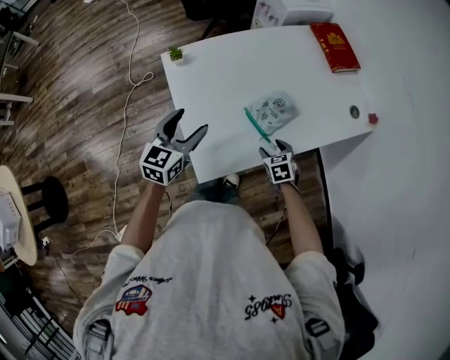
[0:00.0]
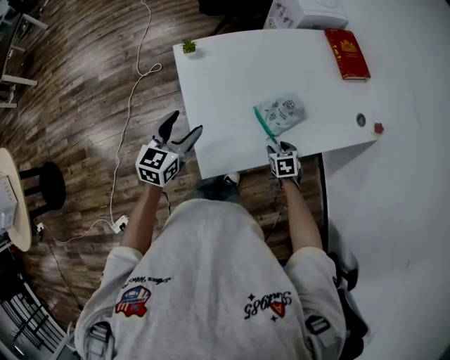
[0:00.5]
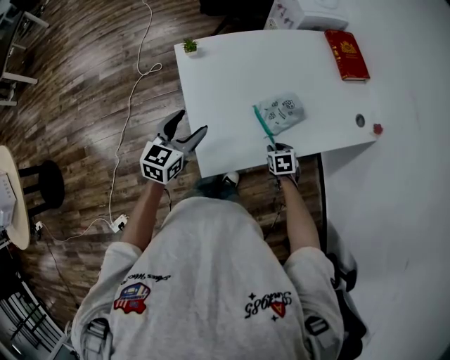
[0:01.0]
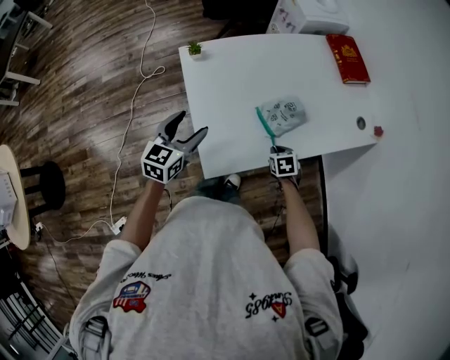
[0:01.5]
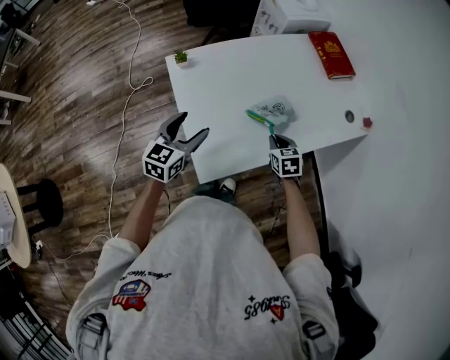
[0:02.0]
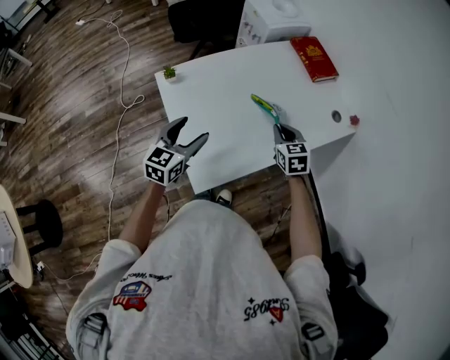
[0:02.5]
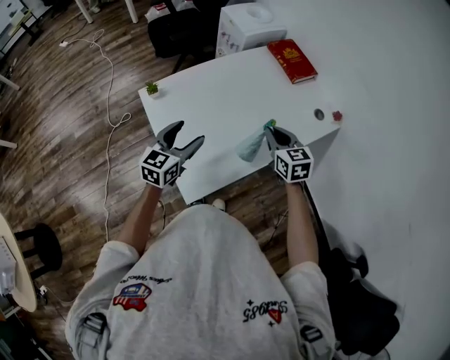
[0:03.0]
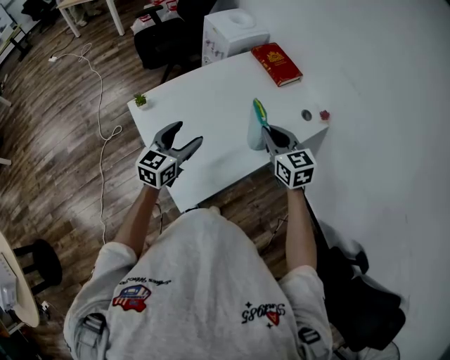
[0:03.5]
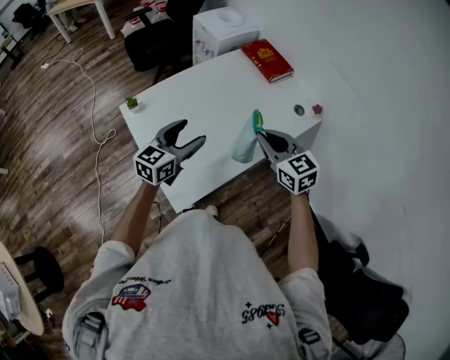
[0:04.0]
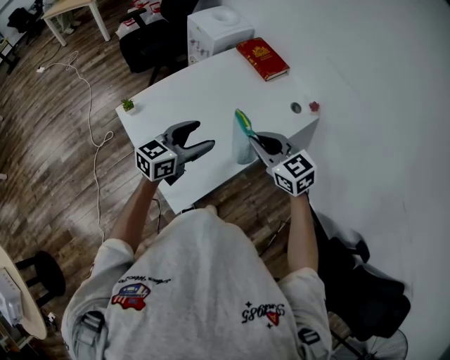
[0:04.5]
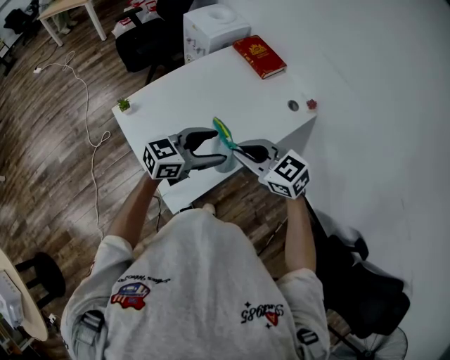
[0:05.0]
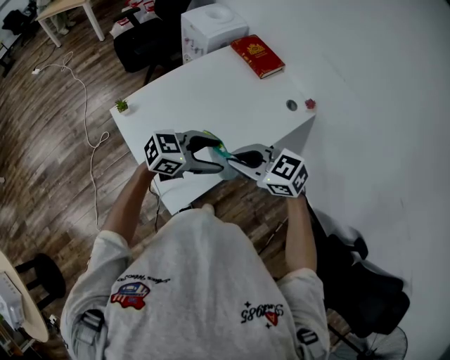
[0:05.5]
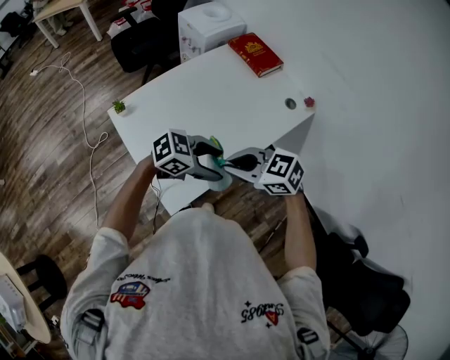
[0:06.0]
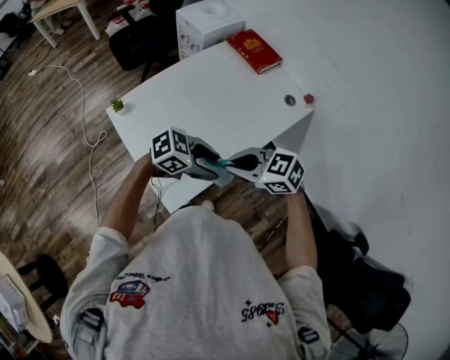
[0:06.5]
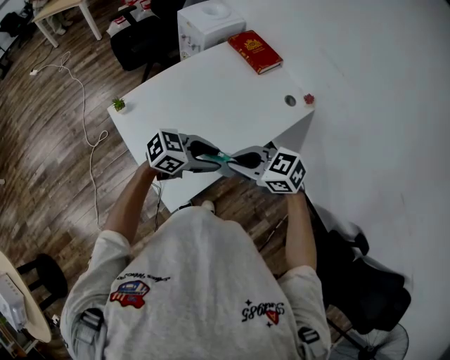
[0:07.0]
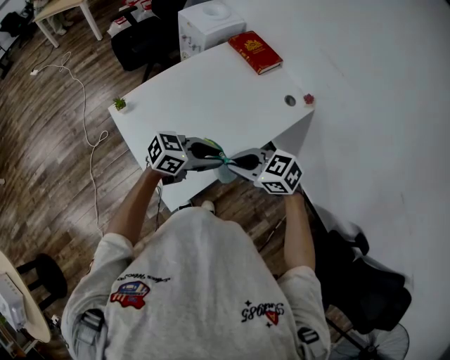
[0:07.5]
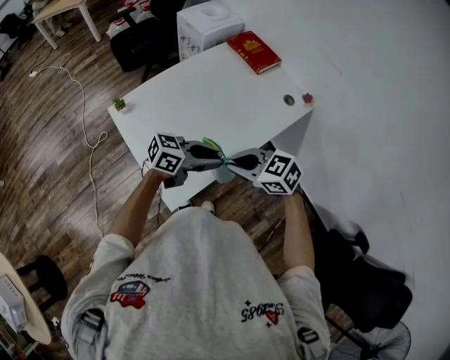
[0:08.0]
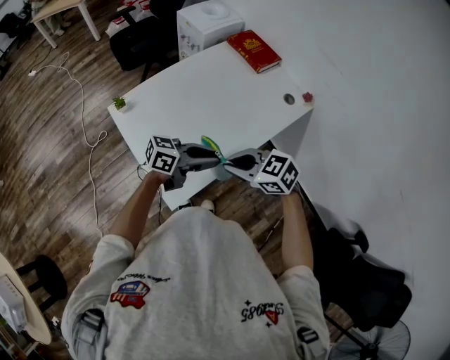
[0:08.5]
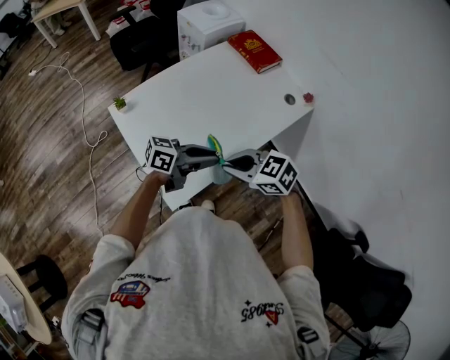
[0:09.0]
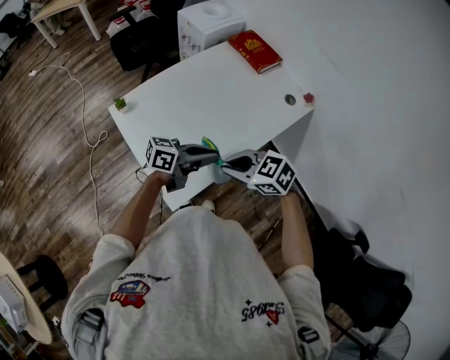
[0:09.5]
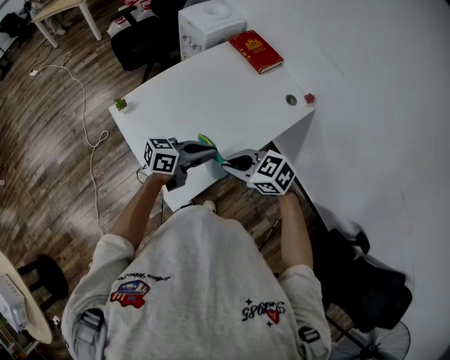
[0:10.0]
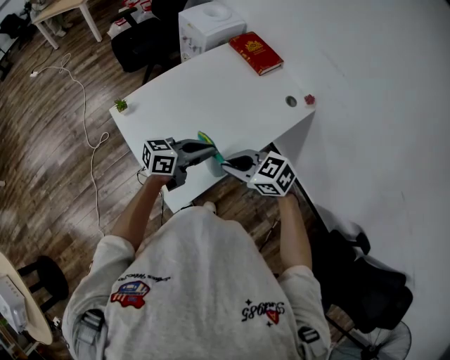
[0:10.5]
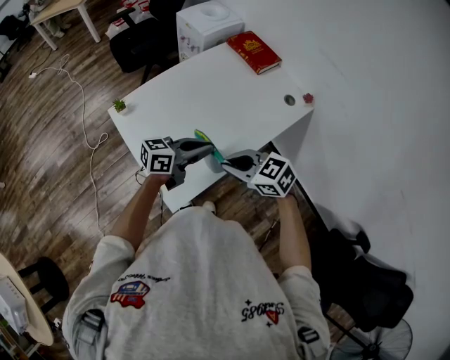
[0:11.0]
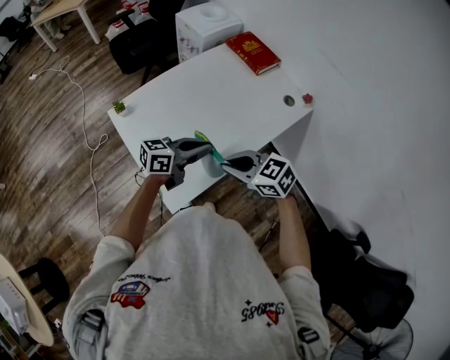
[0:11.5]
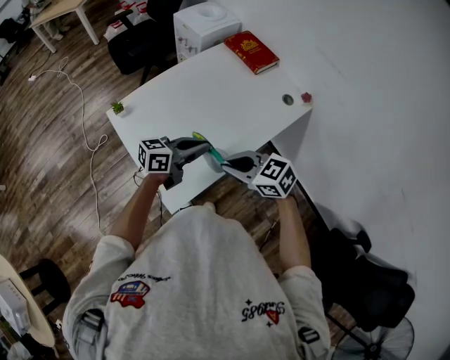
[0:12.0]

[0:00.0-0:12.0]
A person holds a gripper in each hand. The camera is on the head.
0:00.0 to 0:02.0: The right gripper shifts some 5 cm upward, and closes.
0:02.0 to 0:04.0: The left gripper goes approximately 15 cm to the right, upward and forward, and rotates about 20 degrees, while the right gripper travels upward by roughly 25 cm, and changes its angle by roughly 30 degrees.
0:04.0 to 0:06.0: The left gripper moves roughly 15 cm, and changes its angle by roughly 60 degrees. The right gripper shifts by roughly 10 cm, and turns by approximately 40 degrees.
0:06.0 to 0:08.0: The left gripper rotates some 30 degrees, and closes.
0:08.0 to 0:10.0: The grippers move only a little.
0:10.0 to 0:12.0: The grippers make only small movements.

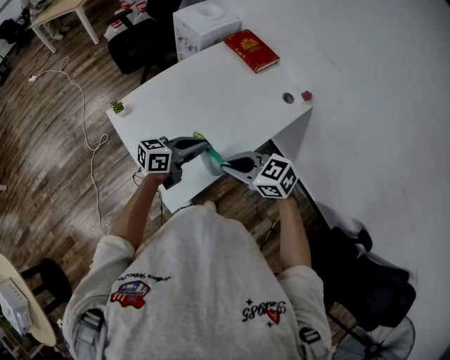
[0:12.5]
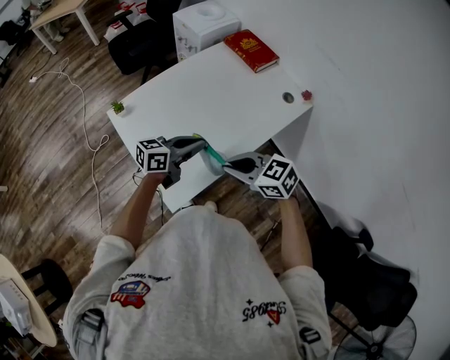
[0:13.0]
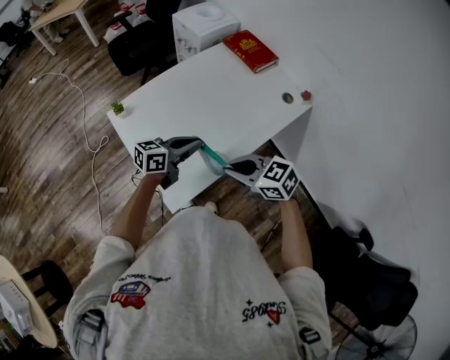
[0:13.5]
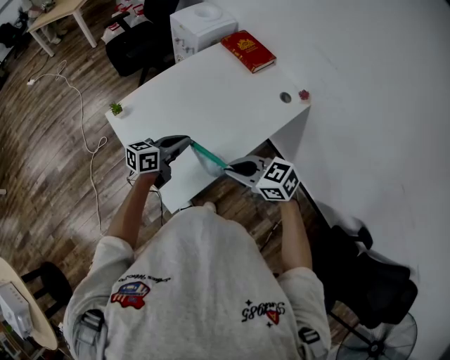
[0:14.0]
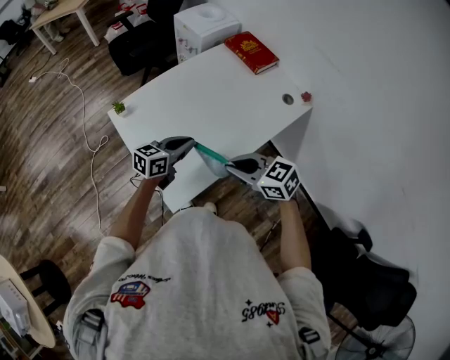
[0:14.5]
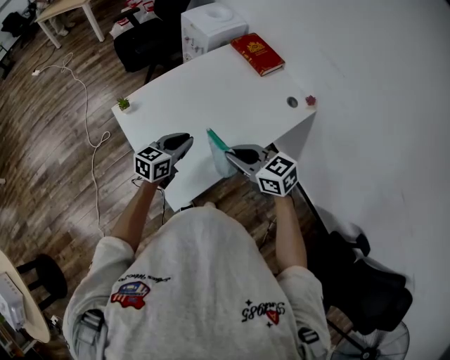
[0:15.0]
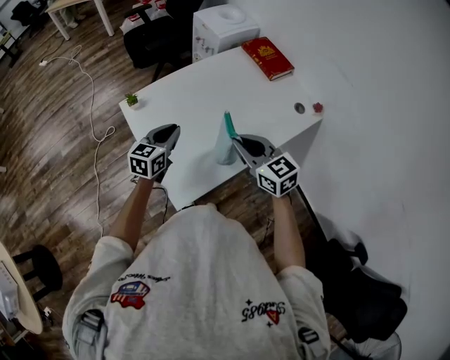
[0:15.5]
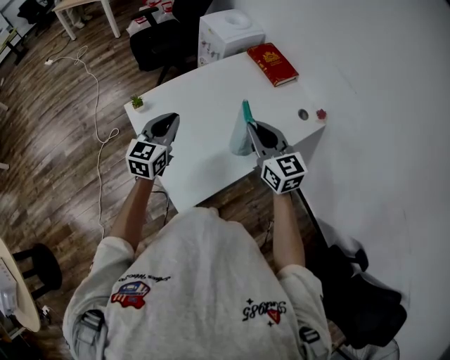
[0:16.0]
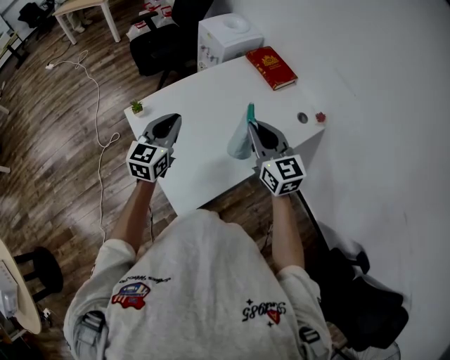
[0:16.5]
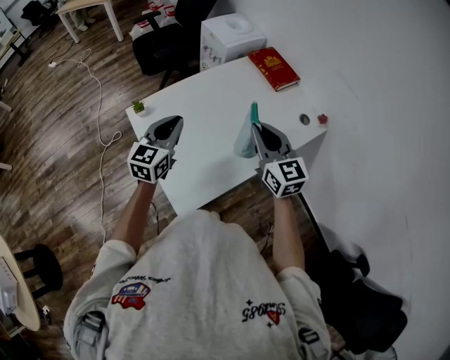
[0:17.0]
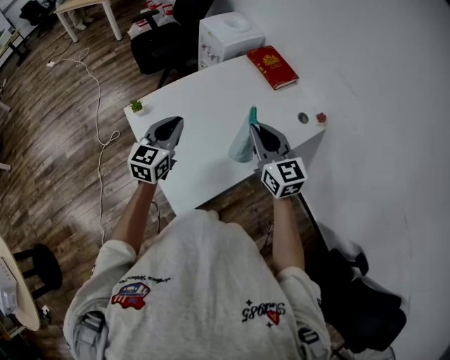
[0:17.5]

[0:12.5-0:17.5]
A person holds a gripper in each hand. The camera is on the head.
0:12.5 to 0:15.0: The left gripper shifts by roughly 10 cm, and rotates approximately 30 degrees.
0:15.0 to 0:17.5: The left gripper heads upward and to the left, covering roughly 10 cm, and turns by about 30 degrees; the right gripper moves forward and upward, approximately 10 cm, and rotates roughly 30 degrees.

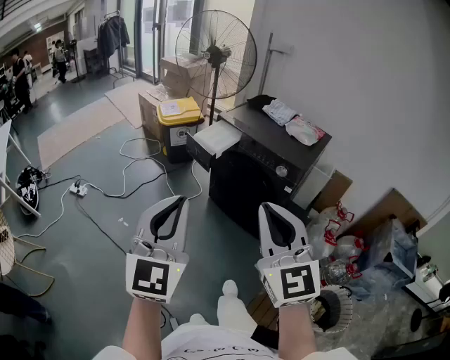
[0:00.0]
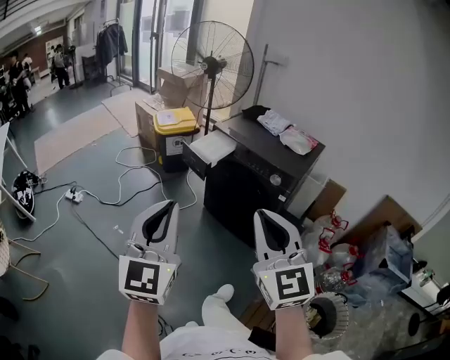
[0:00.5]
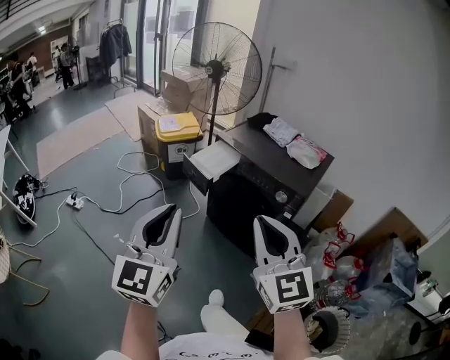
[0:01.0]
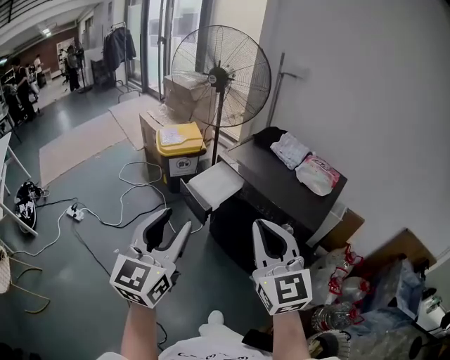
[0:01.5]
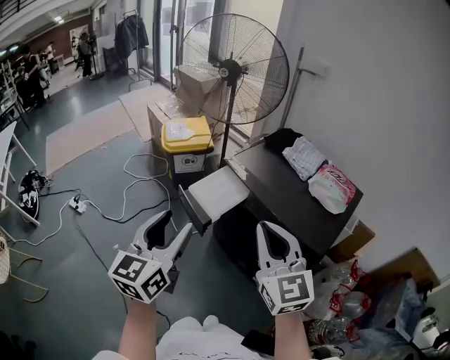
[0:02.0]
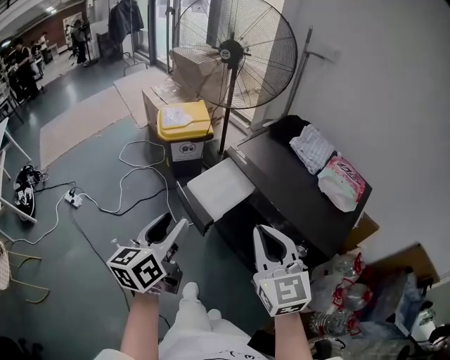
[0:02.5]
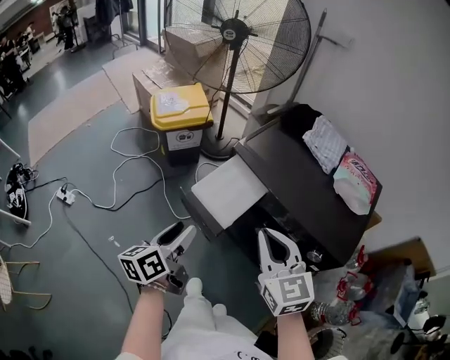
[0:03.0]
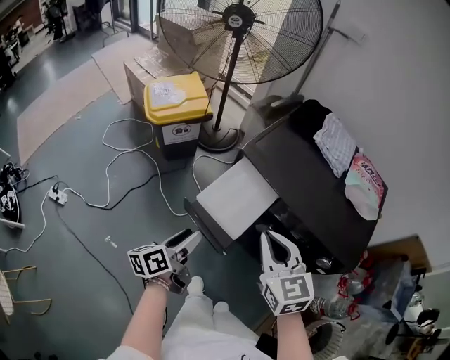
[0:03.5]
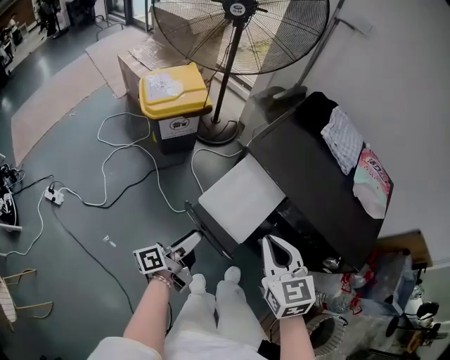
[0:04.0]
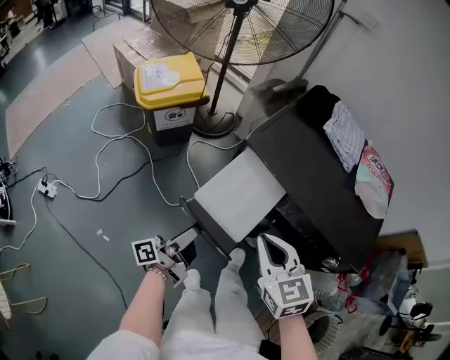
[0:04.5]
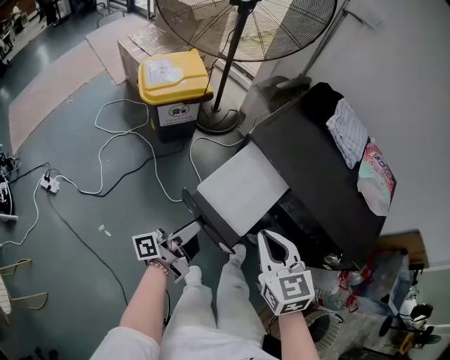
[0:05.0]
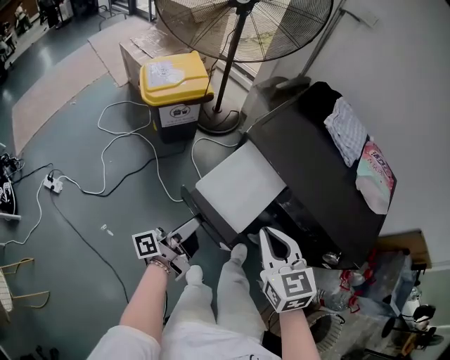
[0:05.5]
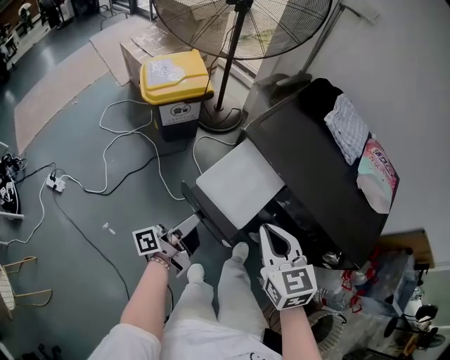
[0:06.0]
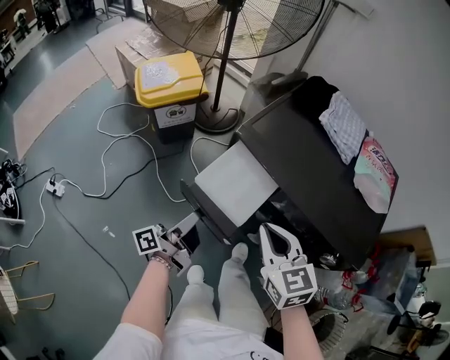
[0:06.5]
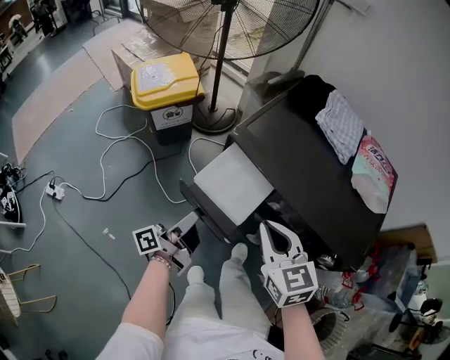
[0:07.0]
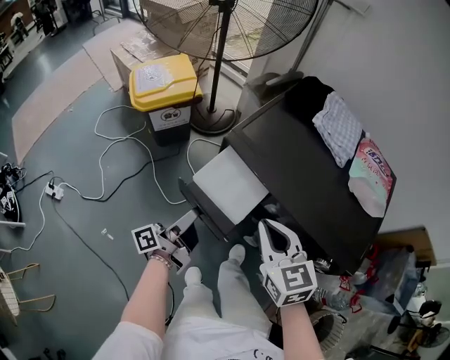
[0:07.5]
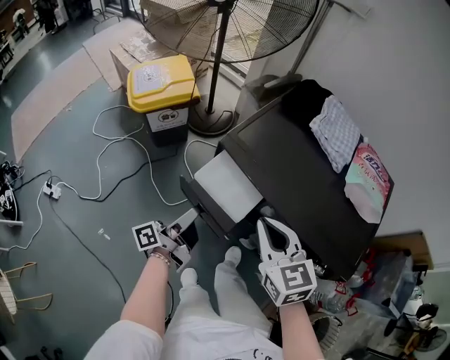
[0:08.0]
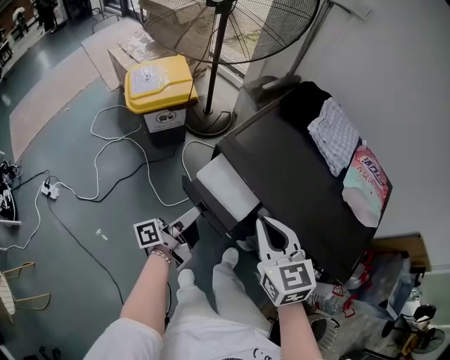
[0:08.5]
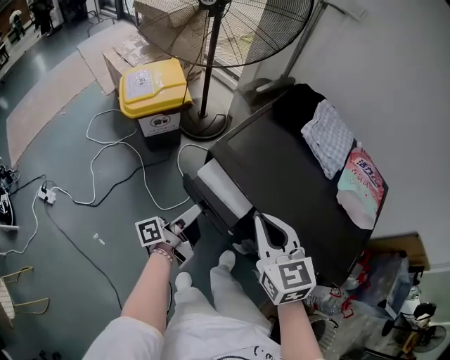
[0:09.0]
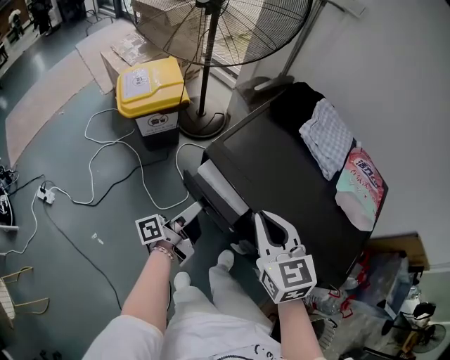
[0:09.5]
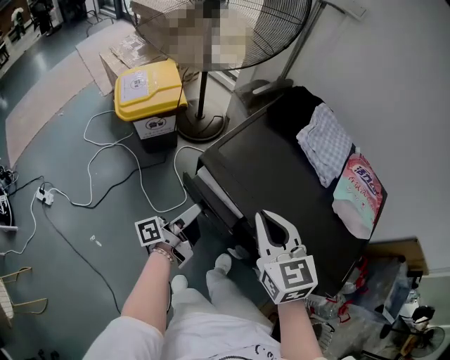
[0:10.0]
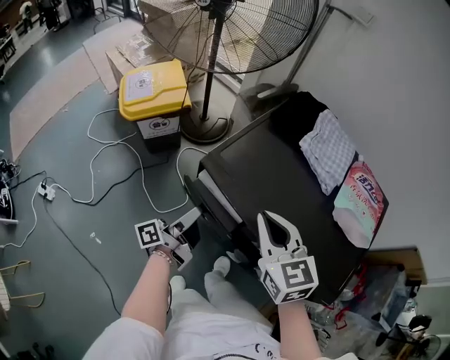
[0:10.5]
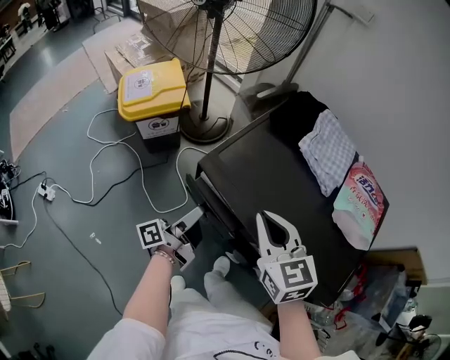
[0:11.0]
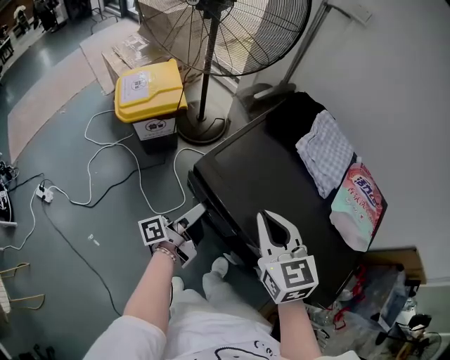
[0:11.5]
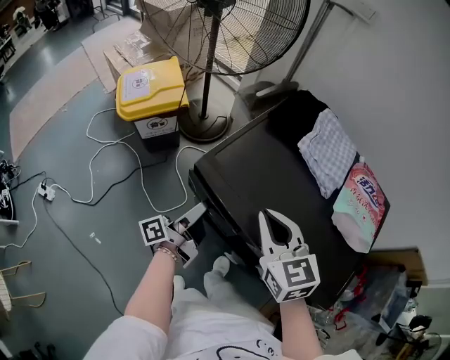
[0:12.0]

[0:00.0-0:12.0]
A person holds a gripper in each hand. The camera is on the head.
0:00.0 to 0:02.0: The grippers both shift forward by approximately 35 cm. The left gripper swivels about 30 degrees, and opens its fingers.
0:02.0 to 0:04.0: The right gripper goes approximately 30 cm downward, forward and to the left, and turns by about 30 degrees. Meanwhile the left gripper shifts roughly 40 cm downward and forward, and rolls counterclockwise, seen from behind, by roughly 70 degrees.
0:04.0 to 0:06.0: The grippers move only a little.
0:06.0 to 0:08.0: The grippers both shift forward by some 5 cm.
0:08.0 to 0:10.0: Both grippers move forward, about 5 cm.
0:10.0 to 0:12.0: There are only small adjustments of the grippers.
